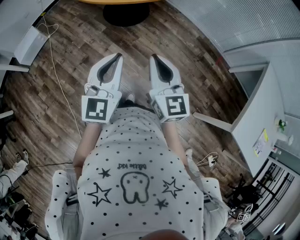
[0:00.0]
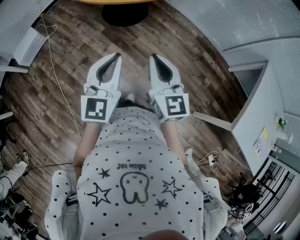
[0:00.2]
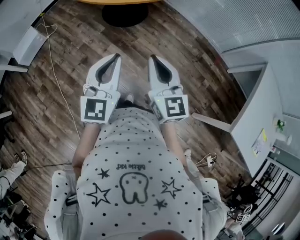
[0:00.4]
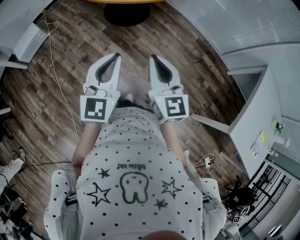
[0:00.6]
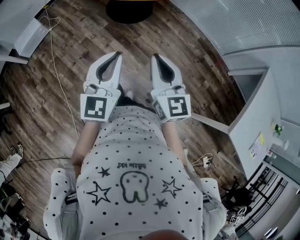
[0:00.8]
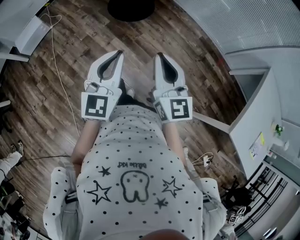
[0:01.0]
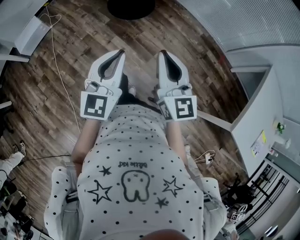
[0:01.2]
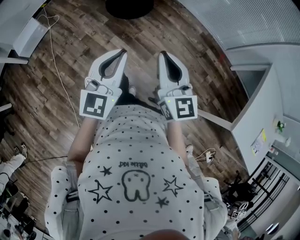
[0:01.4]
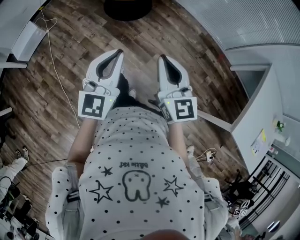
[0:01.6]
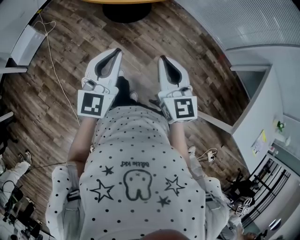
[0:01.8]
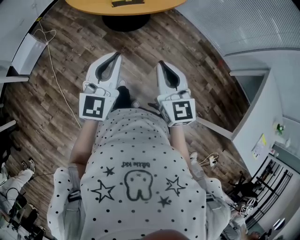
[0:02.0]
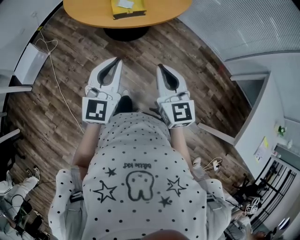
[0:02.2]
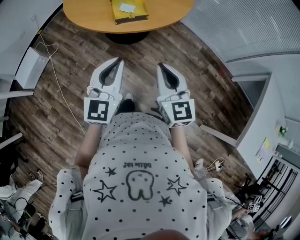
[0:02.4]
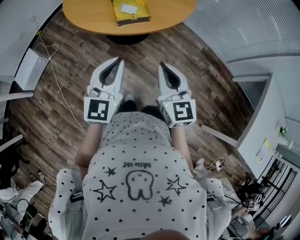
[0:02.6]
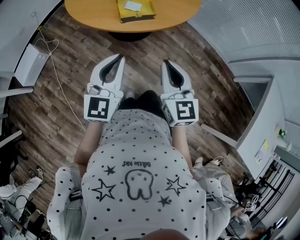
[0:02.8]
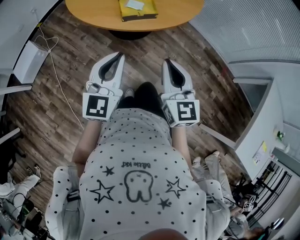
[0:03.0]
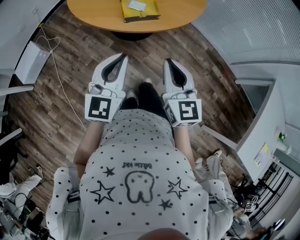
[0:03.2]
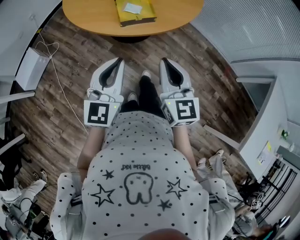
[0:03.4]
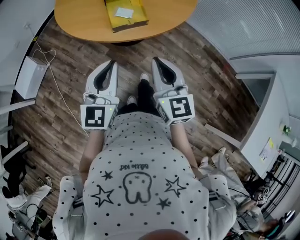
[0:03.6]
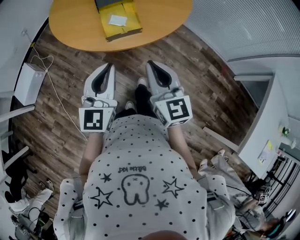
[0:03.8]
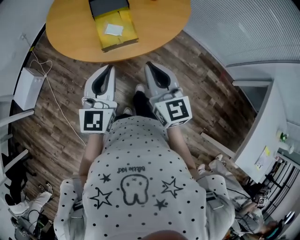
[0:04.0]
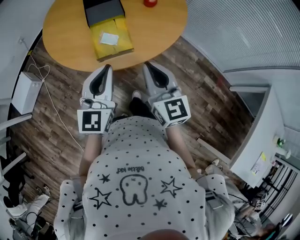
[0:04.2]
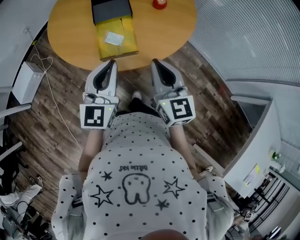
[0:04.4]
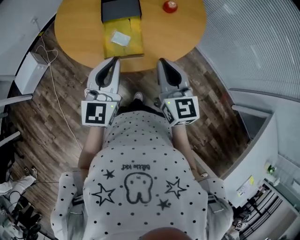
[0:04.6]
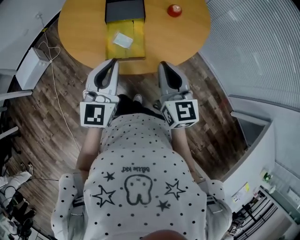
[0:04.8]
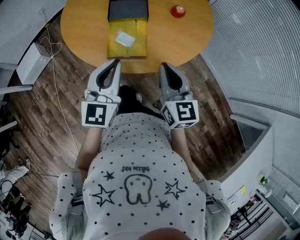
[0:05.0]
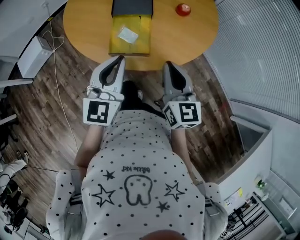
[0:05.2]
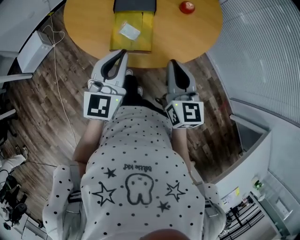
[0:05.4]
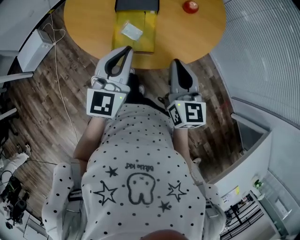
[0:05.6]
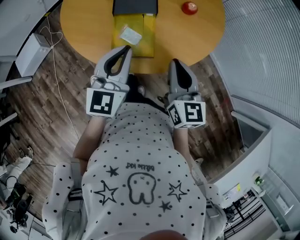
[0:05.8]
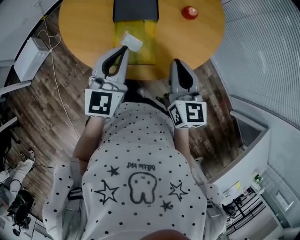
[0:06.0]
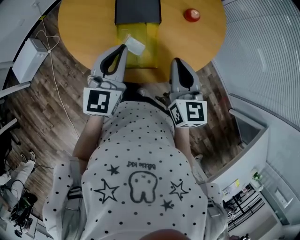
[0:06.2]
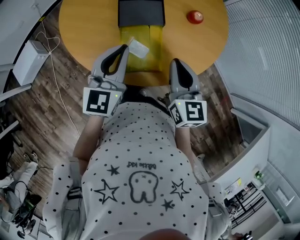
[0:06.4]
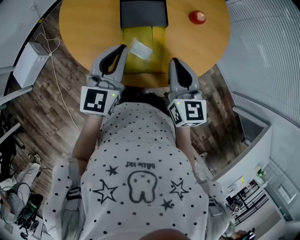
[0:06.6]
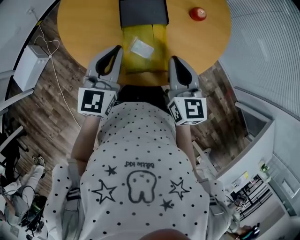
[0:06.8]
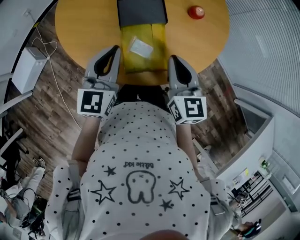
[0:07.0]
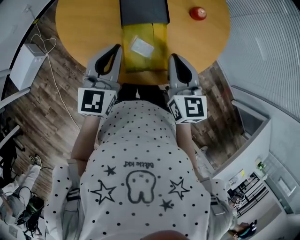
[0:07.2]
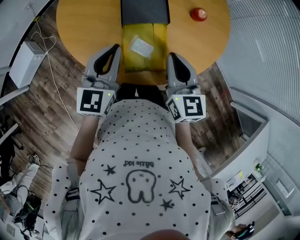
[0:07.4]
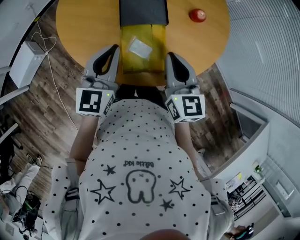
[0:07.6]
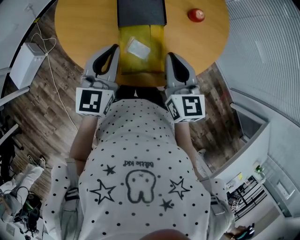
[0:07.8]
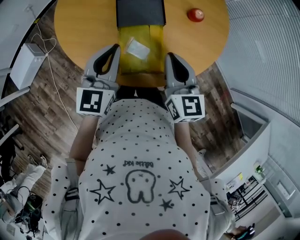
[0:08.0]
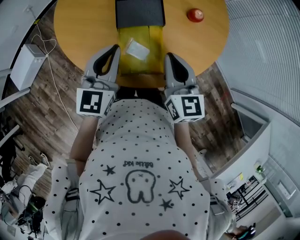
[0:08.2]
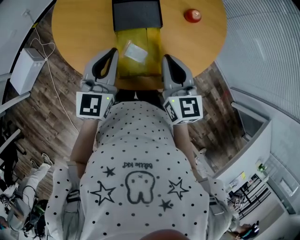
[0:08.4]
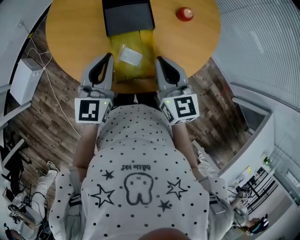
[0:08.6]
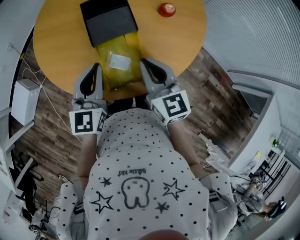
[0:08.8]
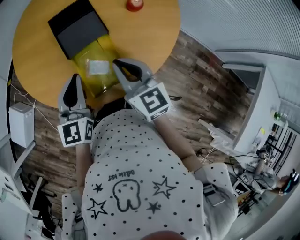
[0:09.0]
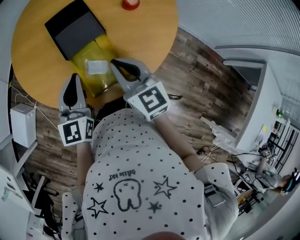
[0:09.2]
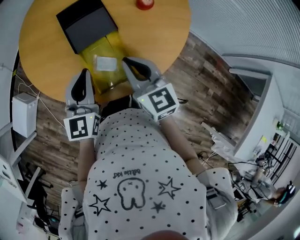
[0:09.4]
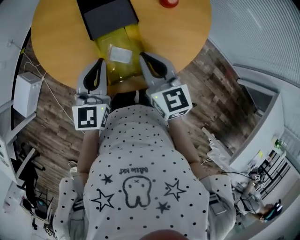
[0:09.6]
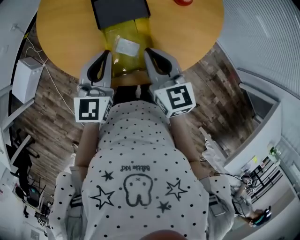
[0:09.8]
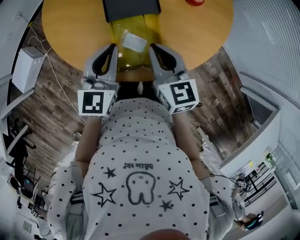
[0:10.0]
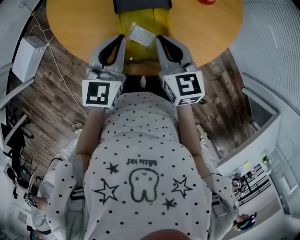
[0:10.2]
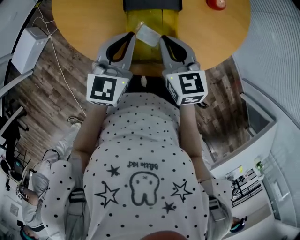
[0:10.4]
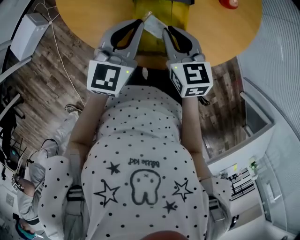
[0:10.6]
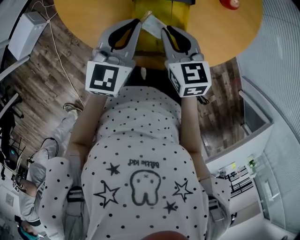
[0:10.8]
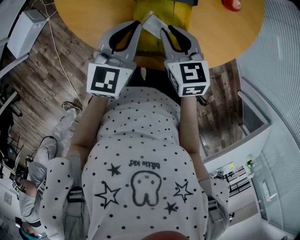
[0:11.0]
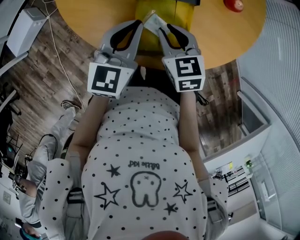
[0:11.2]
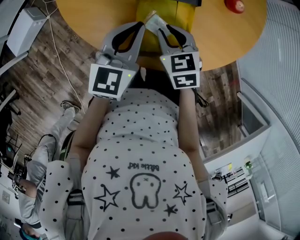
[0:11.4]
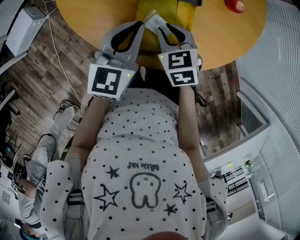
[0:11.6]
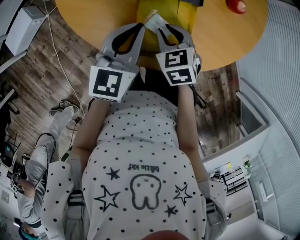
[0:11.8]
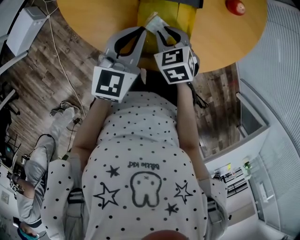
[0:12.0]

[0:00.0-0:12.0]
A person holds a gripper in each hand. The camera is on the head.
0:00.0 to 0:01.6: The left gripper shifts by about 5 cm.
0:01.6 to 0:03.0: The two grippers go about 25 cm forward and to the left.
0:03.0 to 0:04.4: Both grippers move forward, approximately 20 cm.
0:04.4 to 0:06.0: Both grippers move forward, roughly 15 cm.
0:06.0 to 0:07.6: The left gripper travels to the left by about 10 cm. The right gripper shifts approximately 10 cm to the left and forward.
0:07.6 to 0:09.0: The grippers stay close to where they were, moving slightly.
0:09.0 to 0:10.4: Both grippers travel together downward, about 5 cm.
0:10.4 to 0:12.0: The right gripper heads downward, covering roughly 10 cm, swivels about 30 degrees, and opens.

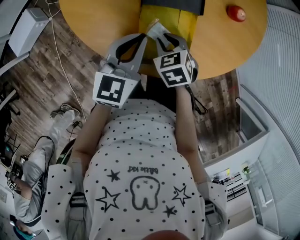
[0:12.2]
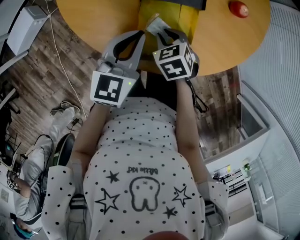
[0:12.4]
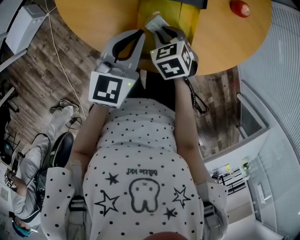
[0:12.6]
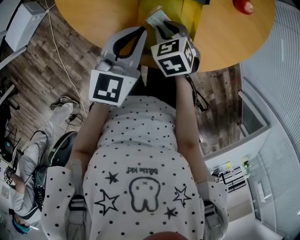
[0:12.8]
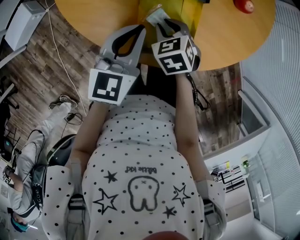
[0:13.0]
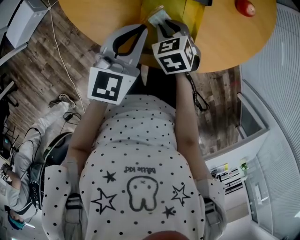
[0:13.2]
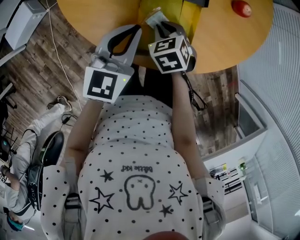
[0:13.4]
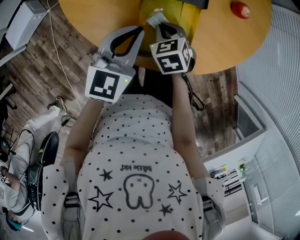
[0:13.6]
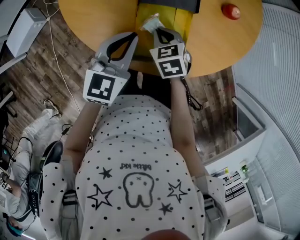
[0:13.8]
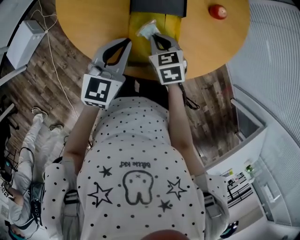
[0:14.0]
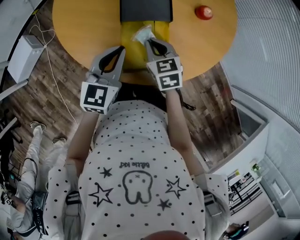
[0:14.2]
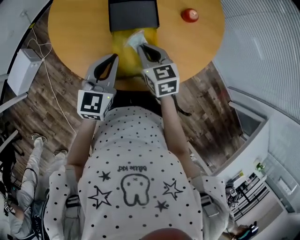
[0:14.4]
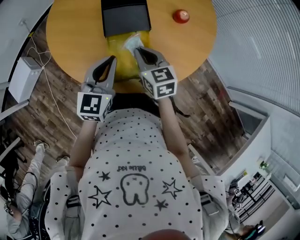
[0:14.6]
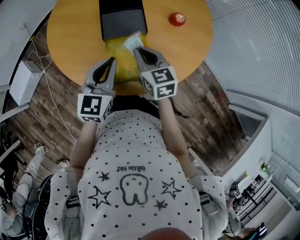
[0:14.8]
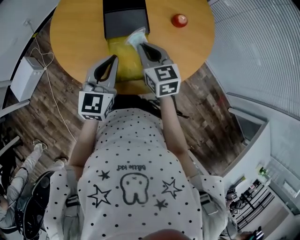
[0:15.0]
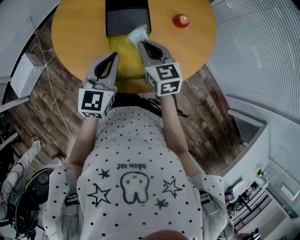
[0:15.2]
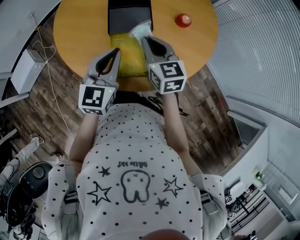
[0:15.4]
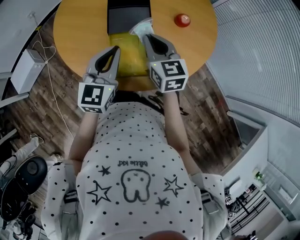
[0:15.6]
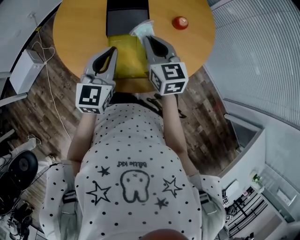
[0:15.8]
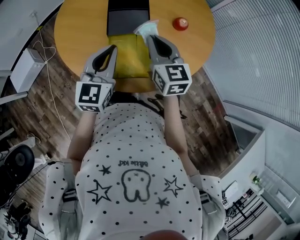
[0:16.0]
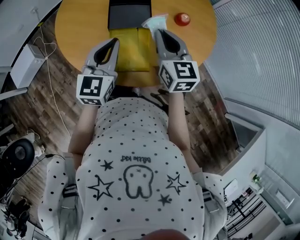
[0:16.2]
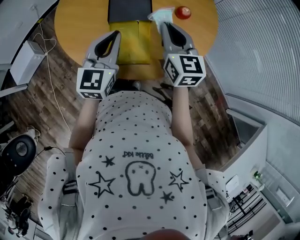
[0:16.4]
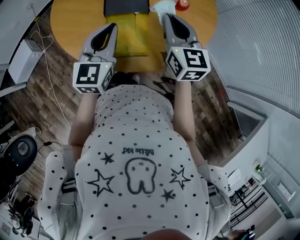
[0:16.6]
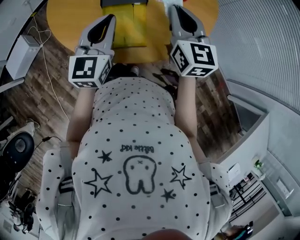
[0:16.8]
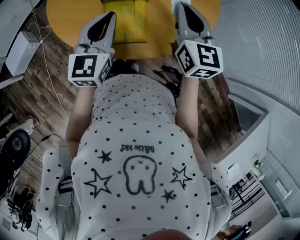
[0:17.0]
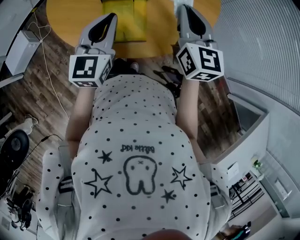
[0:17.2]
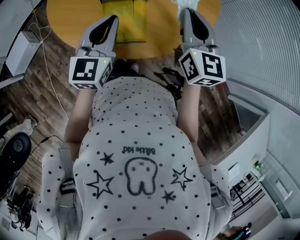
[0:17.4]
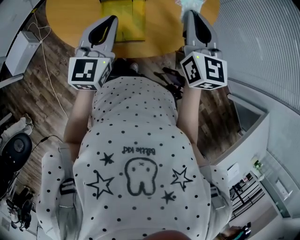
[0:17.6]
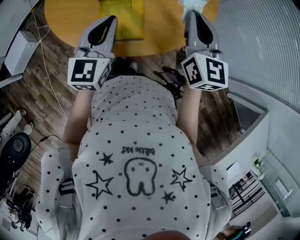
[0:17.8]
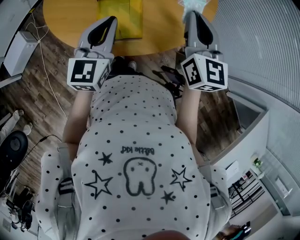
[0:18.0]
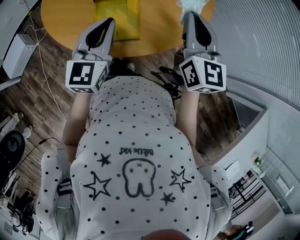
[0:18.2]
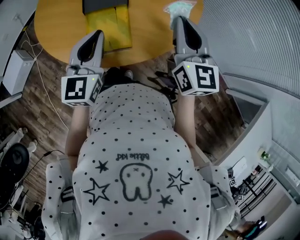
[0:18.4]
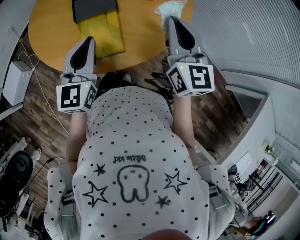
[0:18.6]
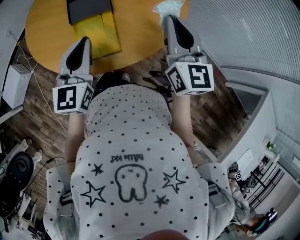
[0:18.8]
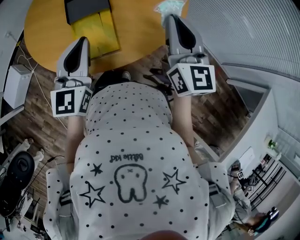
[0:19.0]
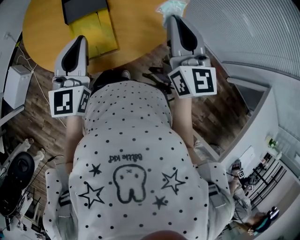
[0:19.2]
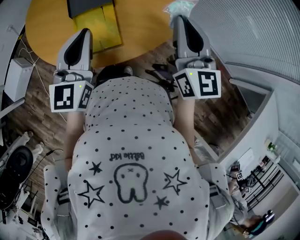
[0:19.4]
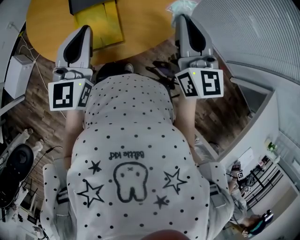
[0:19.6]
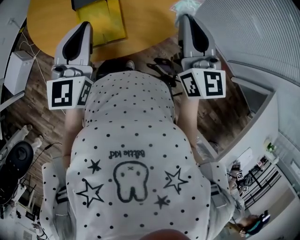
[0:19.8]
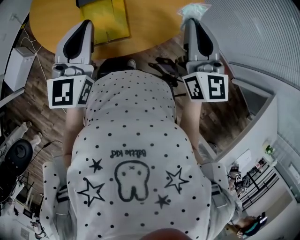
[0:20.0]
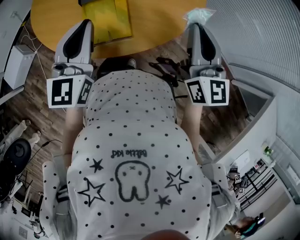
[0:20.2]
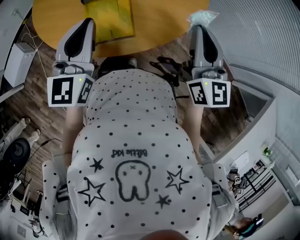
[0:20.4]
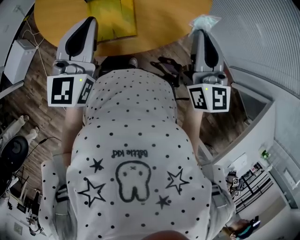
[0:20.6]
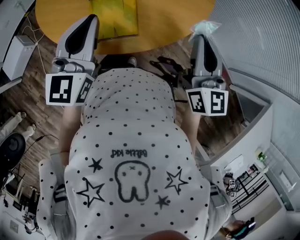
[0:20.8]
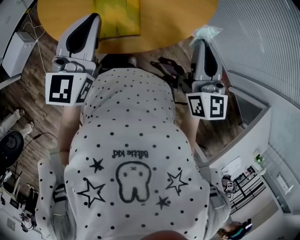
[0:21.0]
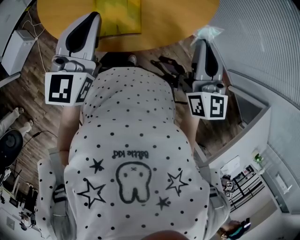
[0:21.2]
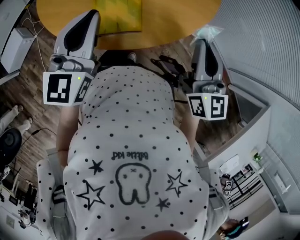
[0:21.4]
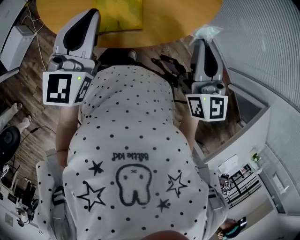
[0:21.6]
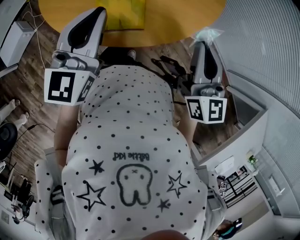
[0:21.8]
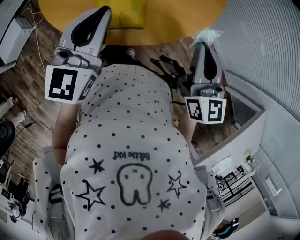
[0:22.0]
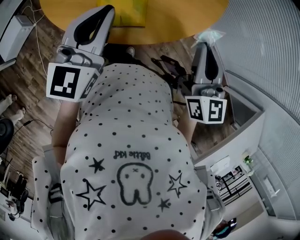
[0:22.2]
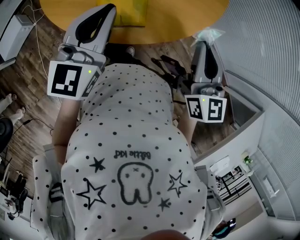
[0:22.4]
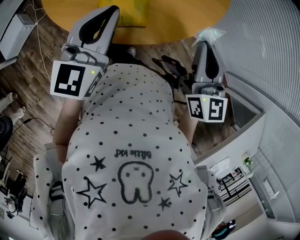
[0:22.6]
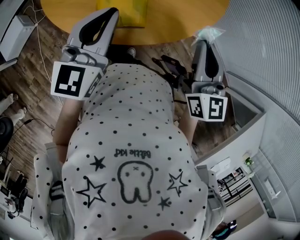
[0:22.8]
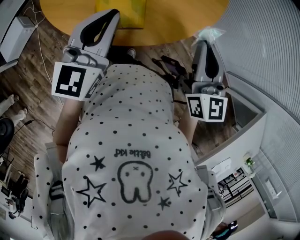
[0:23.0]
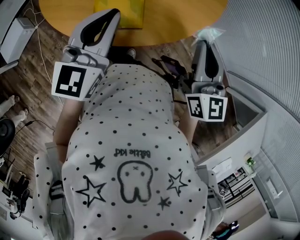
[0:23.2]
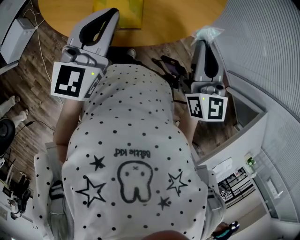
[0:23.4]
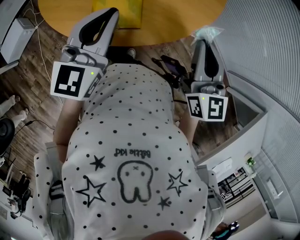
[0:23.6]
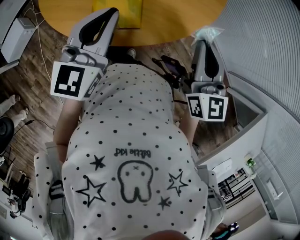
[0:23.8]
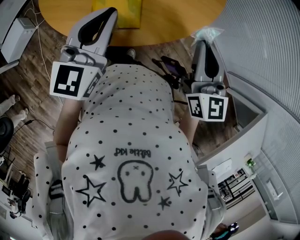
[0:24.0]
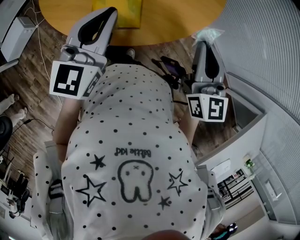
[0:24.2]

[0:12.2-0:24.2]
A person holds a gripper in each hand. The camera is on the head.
0:12.2 to 0:13.8: The right gripper closes.
0:13.8 to 0:15.2: The left gripper goes approximately 10 cm to the right and upward; the right gripper shifts roughly 20 cm upward and to the right, and angles its fingers upward, by about 30 degrees.
0:15.2 to 0:16.6: The right gripper is displaced upward by some 5 cm.
0:16.6 to 0:18.2: The right gripper shifts some 15 cm to the right and backward; the left gripper travels to the right by approximately 5 cm.
0:18.2 to 0:19.8: The right gripper moves about 5 cm.
0:19.8 to 0:21.2: The right gripper ends up roughly 5 cm from where it was.
0:21.2 to 0:22.6: The grippers stay close to where they were, moving slightly.
0:22.6 to 0:24.2: Neither gripper changes place.
